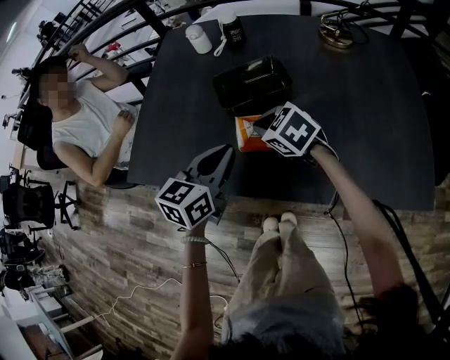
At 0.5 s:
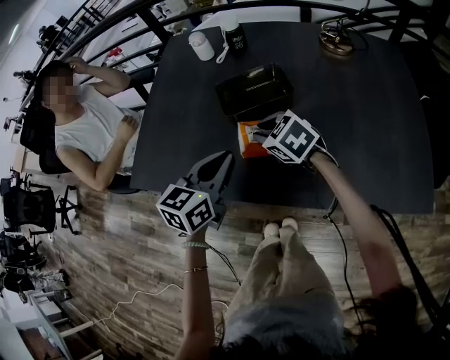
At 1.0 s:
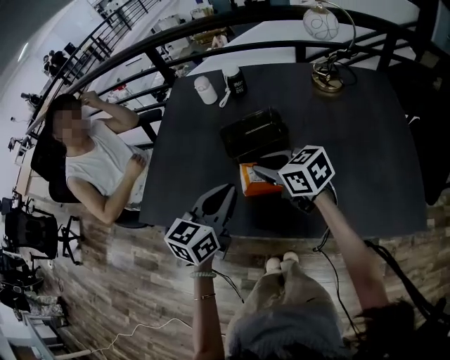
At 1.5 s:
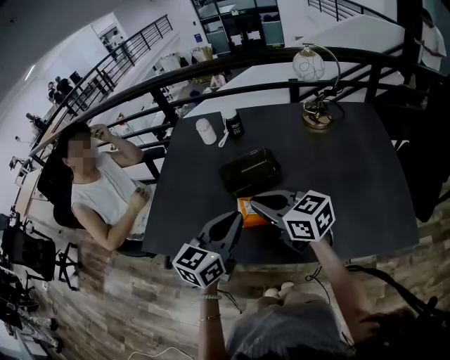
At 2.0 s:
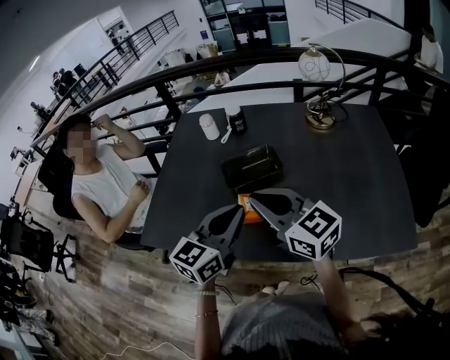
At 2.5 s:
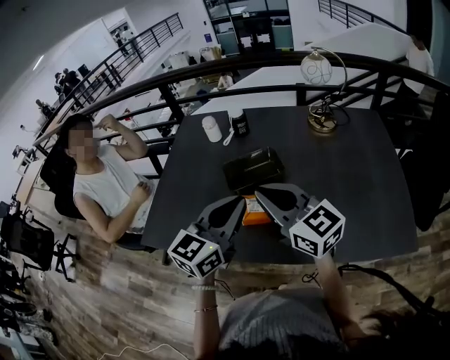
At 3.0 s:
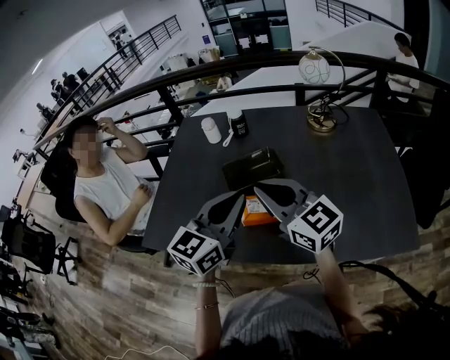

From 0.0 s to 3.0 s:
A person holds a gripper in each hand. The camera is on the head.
From 0.0 s to 1.5 s: The left gripper is displaced upward by roughly 10 cm. The right gripper travels upward by some 15 cm, and tilts its fingers some 30 degrees upward.
From 1.5 s to 3.0 s: The grippers both shift upward by some 5 cm. The right gripper changes its angle by some 20 degrees.

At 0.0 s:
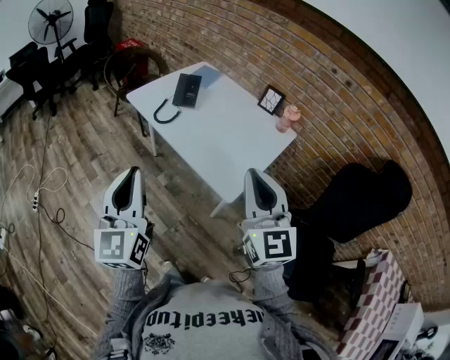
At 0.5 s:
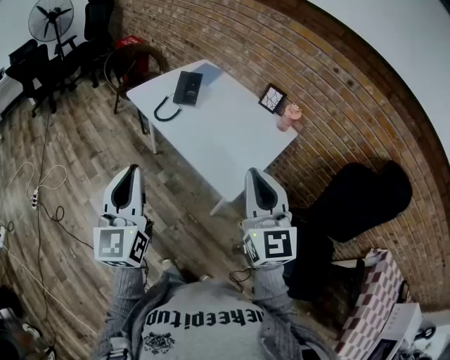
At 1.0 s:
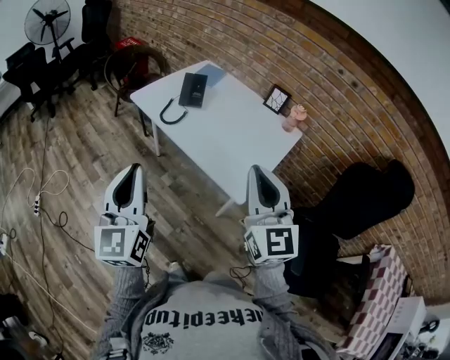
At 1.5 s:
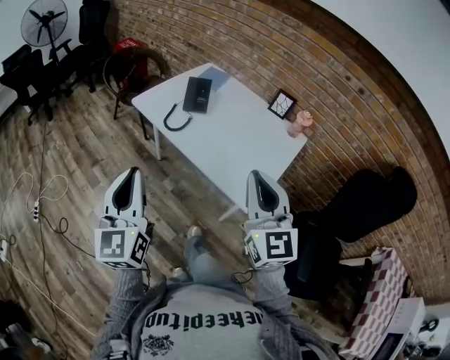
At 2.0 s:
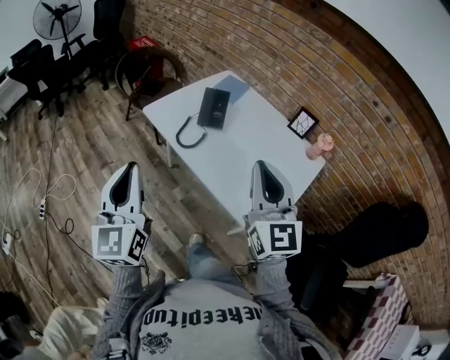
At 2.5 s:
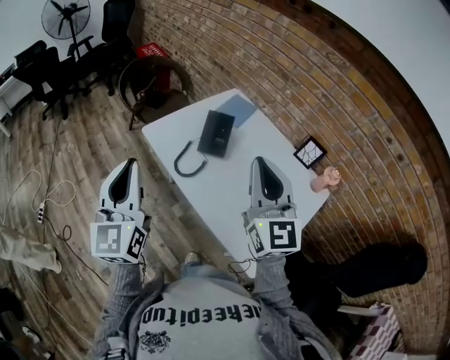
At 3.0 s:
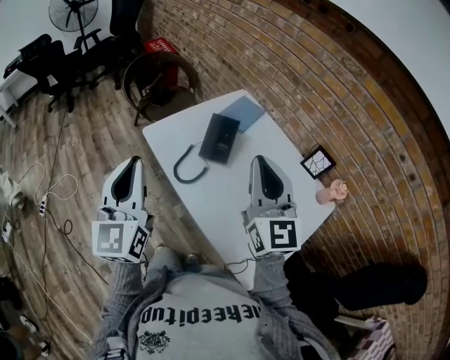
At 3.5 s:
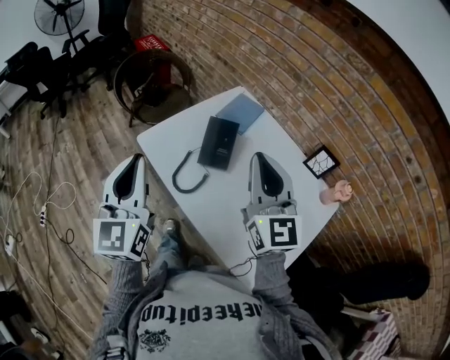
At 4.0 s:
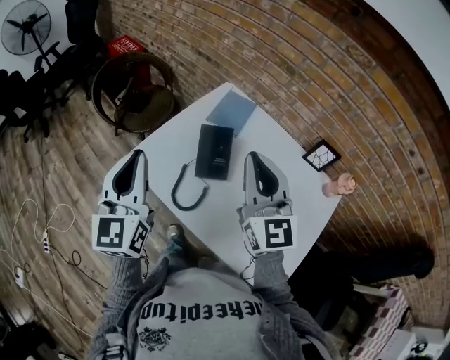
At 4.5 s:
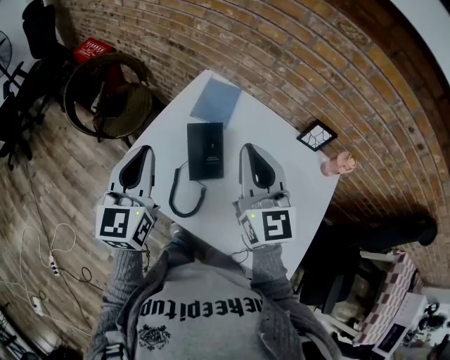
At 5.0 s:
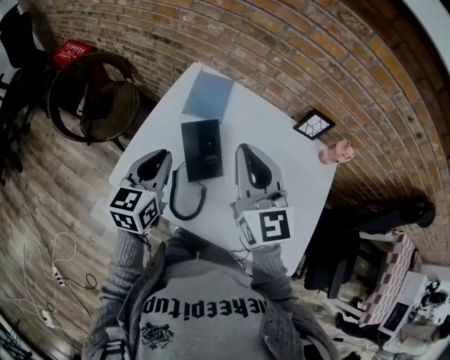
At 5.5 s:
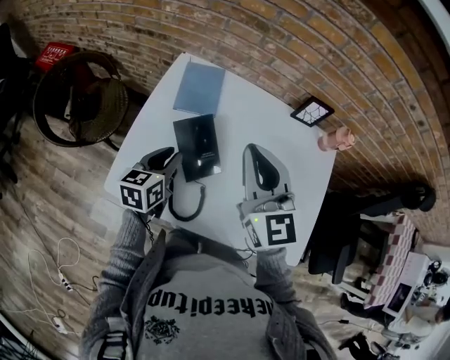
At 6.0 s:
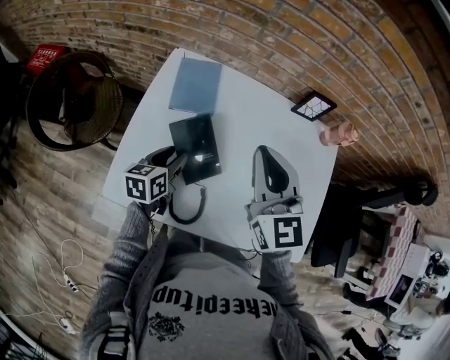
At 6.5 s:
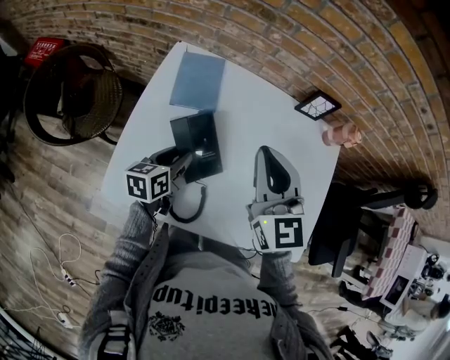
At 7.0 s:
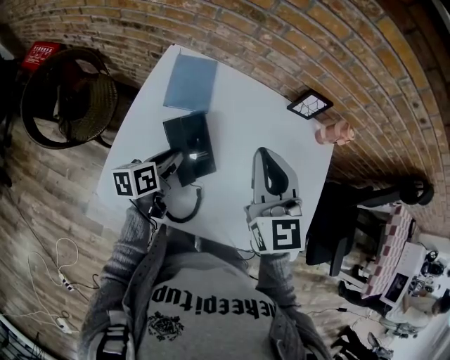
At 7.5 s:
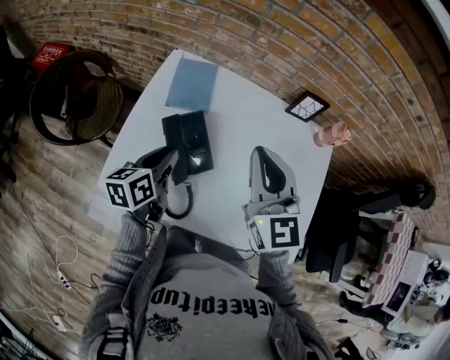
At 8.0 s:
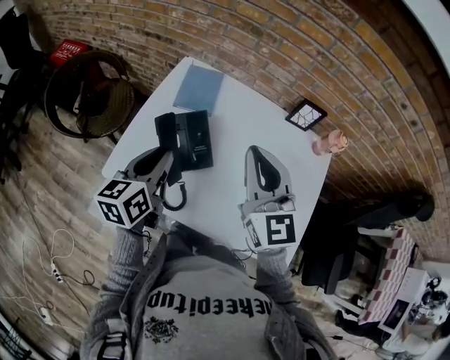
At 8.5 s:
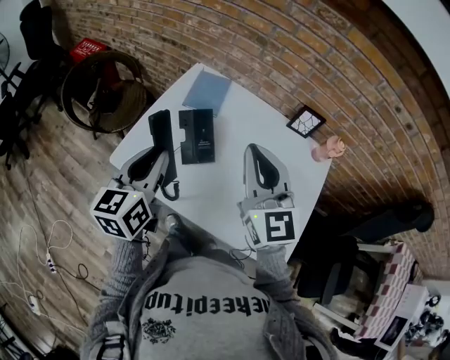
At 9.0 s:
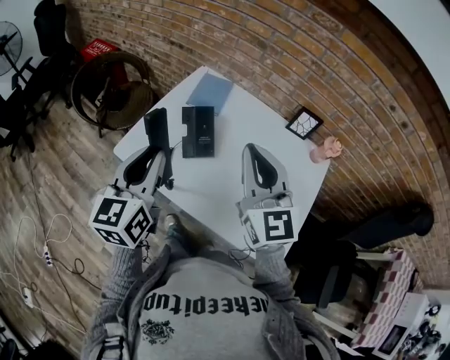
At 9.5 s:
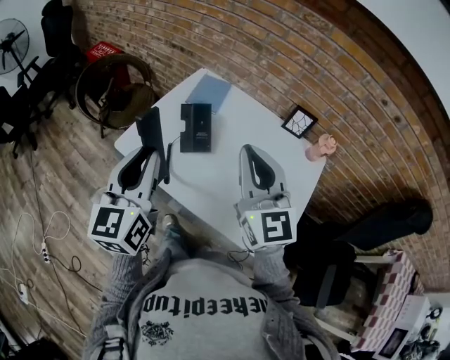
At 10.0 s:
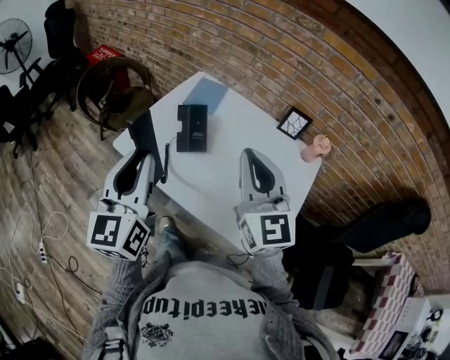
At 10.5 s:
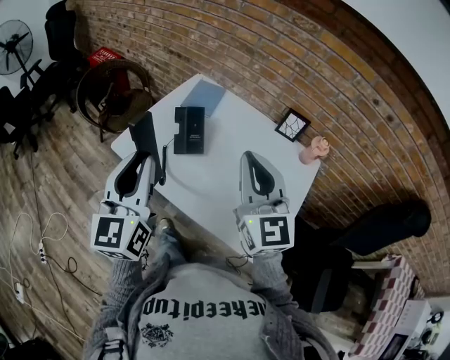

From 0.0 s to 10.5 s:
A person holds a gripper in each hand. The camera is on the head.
From 0.0 s to 2.0 s: The right gripper heads forward, covering about 20 cm; the left gripper travels forward and to the left by roughly 20 cm.
From 2.0 s to 4.0 s: The grippers both shift forward by some 30 cm.
From 4.0 s to 6.5 s: The right gripper changes place by roughly 15 cm, and swivels some 30 degrees. The left gripper moves downward, approximately 30 cm, tips its fingers downward by about 30 degrees, and opens.
From 6.5 s to 8.5 s: The right gripper moves backward and upward, approximately 15 cm. The left gripper moves upward and backward, some 25 cm, and rotates about 40 degrees.
From 8.5 s to 10.5 s: The left gripper travels backward and upward by approximately 15 cm, and changes its angle by some 30 degrees; the right gripper is displaced backward by roughly 10 cm.

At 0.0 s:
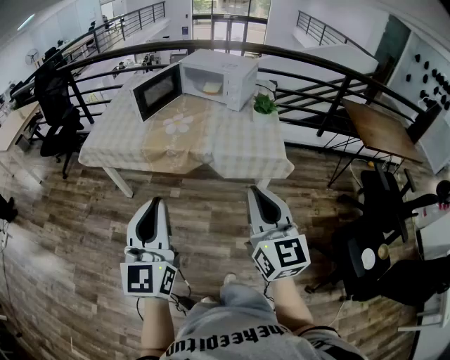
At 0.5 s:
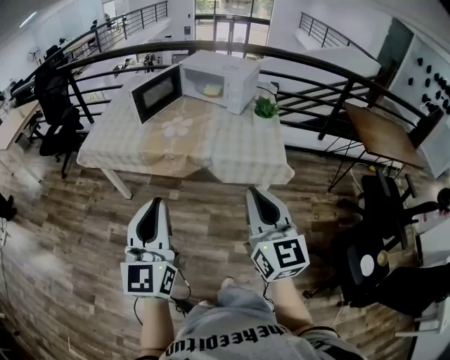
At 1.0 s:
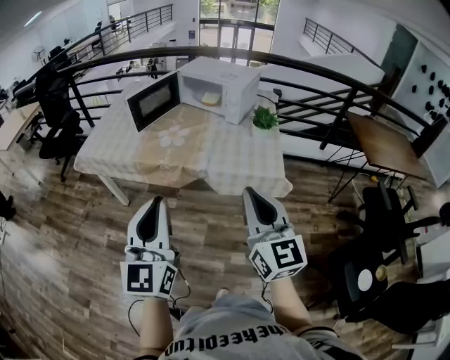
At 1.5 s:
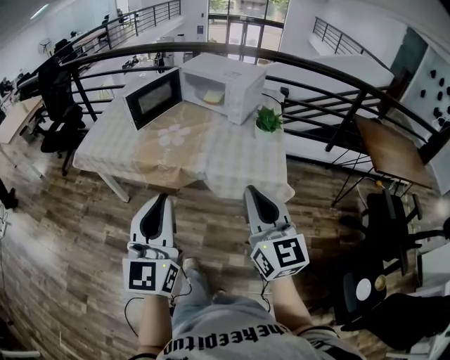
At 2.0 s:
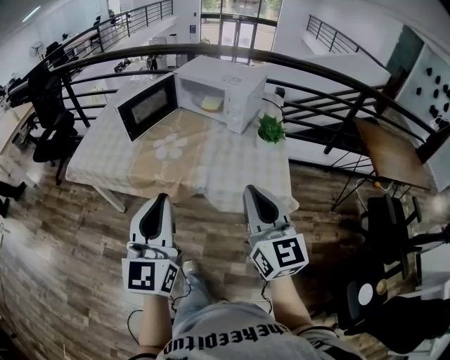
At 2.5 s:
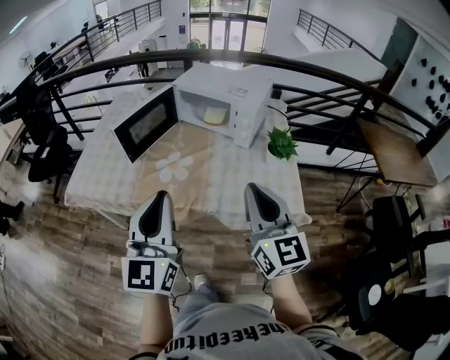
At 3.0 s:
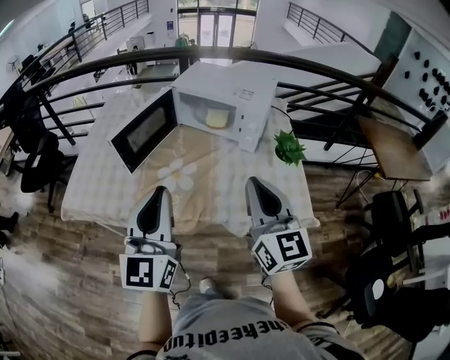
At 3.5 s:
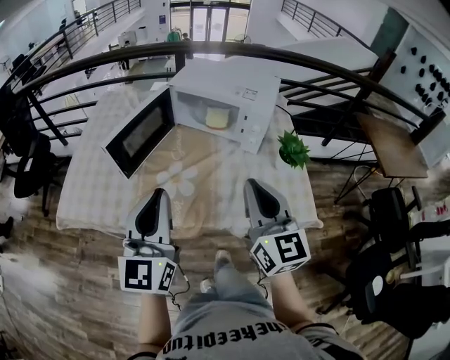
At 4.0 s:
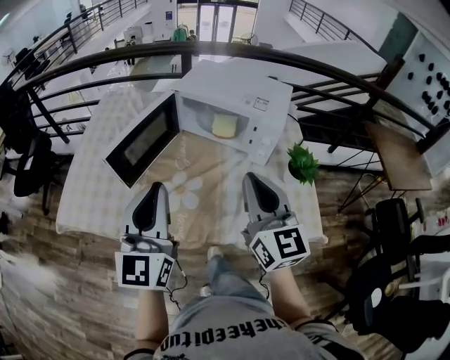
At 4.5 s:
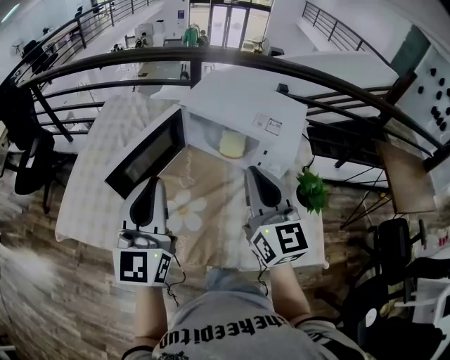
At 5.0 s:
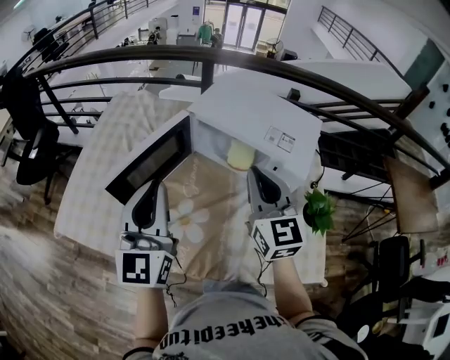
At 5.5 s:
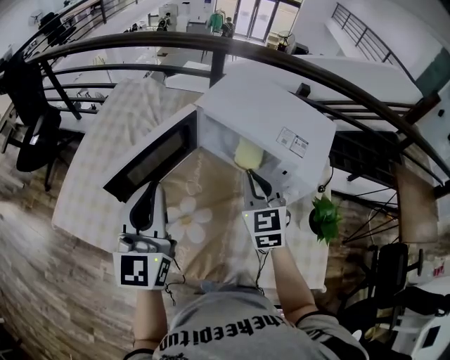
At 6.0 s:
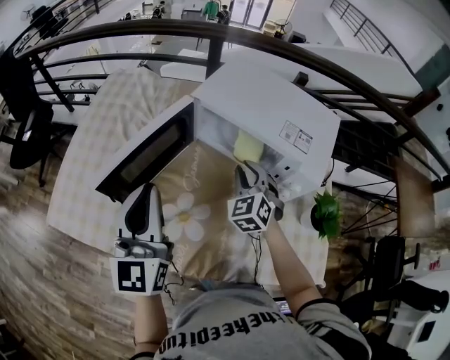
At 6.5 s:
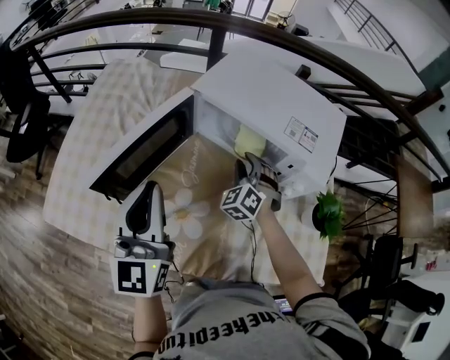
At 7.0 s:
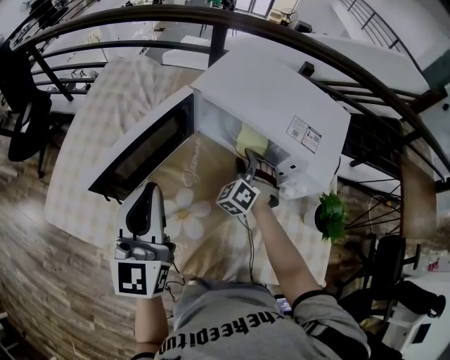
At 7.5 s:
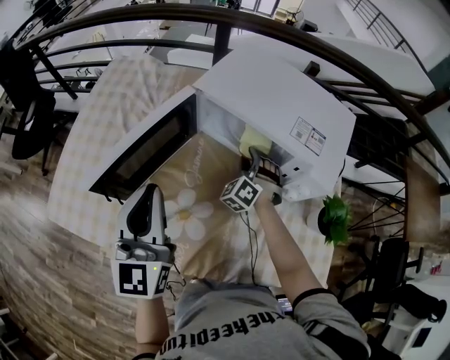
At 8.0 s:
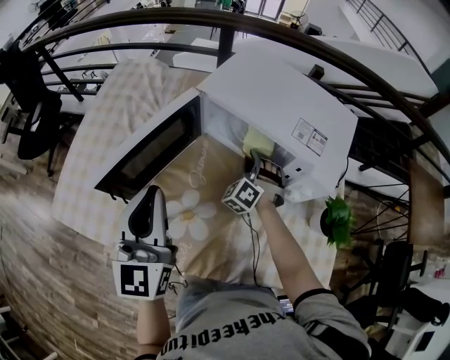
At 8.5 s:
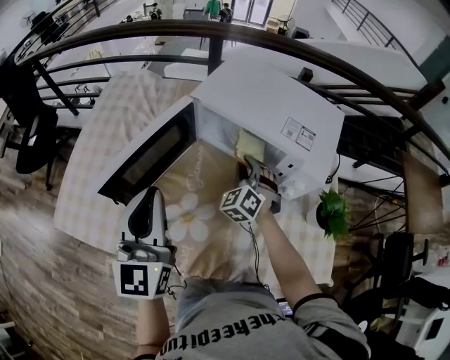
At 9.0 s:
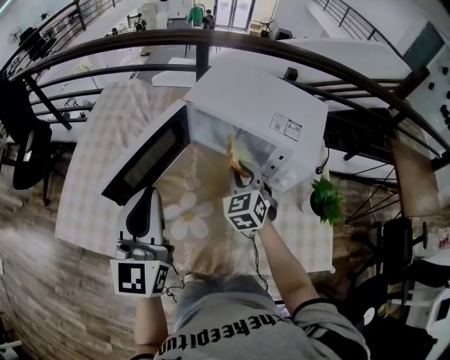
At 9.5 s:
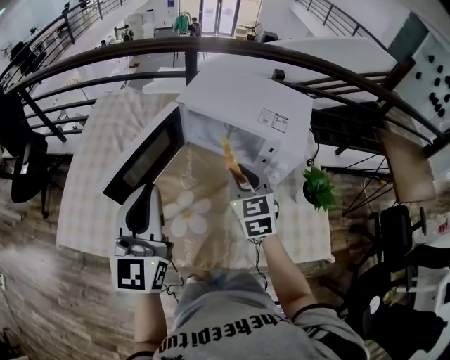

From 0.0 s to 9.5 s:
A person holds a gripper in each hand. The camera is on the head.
From 0.0 s to 2.0 s: Both grippers travel together forward, some 20 cm.
From 2.0 s to 4.0 s: Both grippers move forward, about 30 cm.
From 4.0 s to 5.5 s: The left gripper shifts about 15 cm forward; the right gripper moves forward and downward, about 25 cm, and swivels about 30 degrees.
From 5.5 s to 7.5 s: The left gripper ends up approximately 5 cm from where it was, while the right gripper travels downward and forward by roughly 20 cm, swivels about 50 degrees, and opens up.
From 7.5 s to 9.5 s: The right gripper goes about 20 cm upward and backward, and rolls clockwise, seen from behind, by about 50 degrees. The left gripper shifts about 10 cm upward and backward.

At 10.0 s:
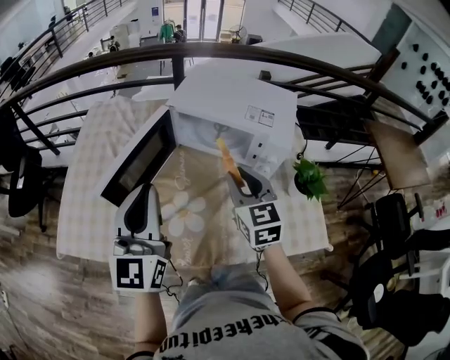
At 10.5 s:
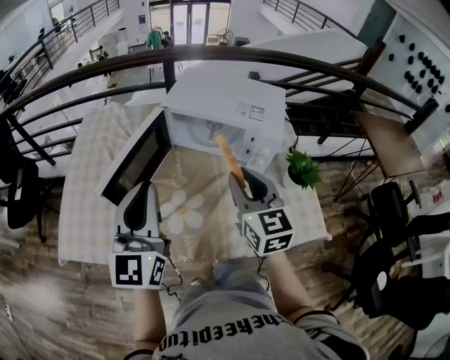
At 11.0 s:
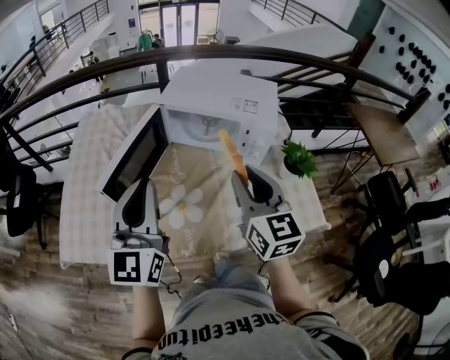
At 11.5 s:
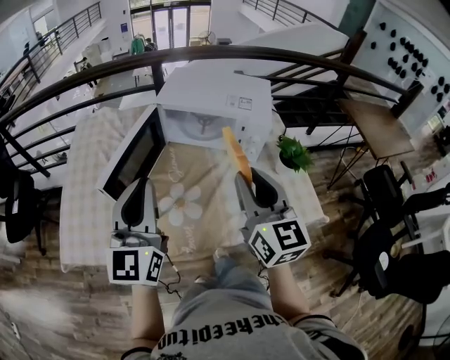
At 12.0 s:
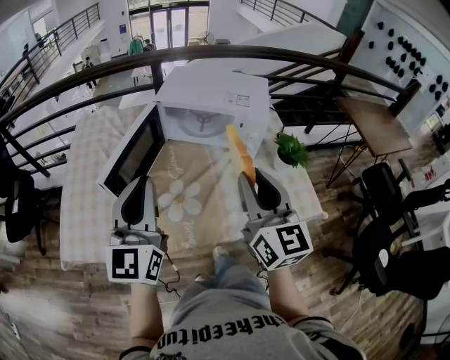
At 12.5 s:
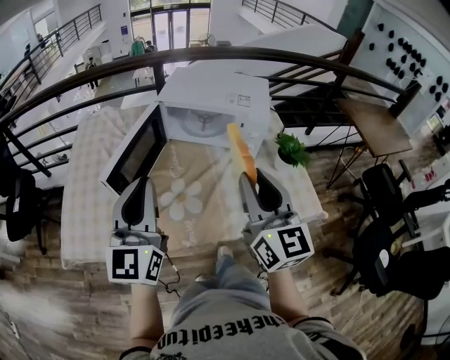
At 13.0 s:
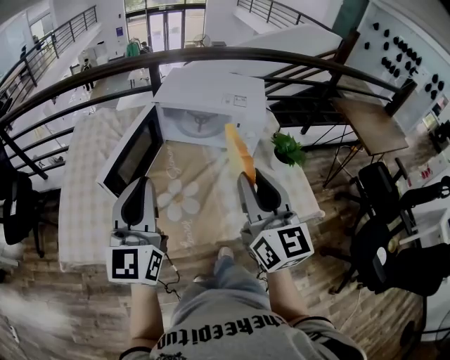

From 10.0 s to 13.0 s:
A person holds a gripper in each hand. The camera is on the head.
From 10.0 s to 11.5 s: The right gripper moves backward and upward, some 15 cm, and rotates roughly 20 degrees.
From 11.5 s to 13.0 s: The right gripper moves some 5 cm.
